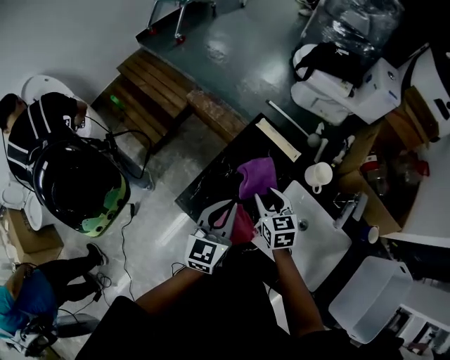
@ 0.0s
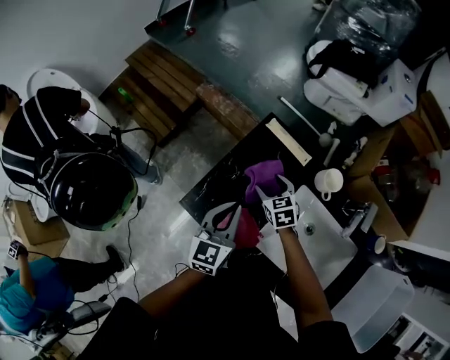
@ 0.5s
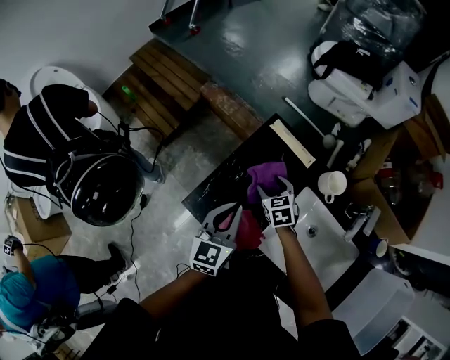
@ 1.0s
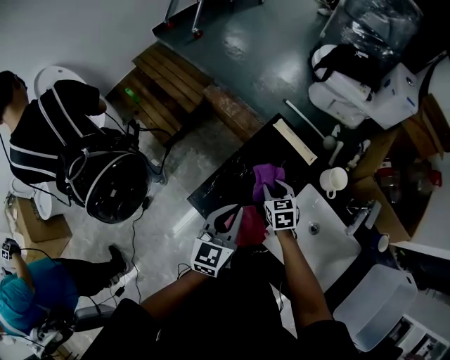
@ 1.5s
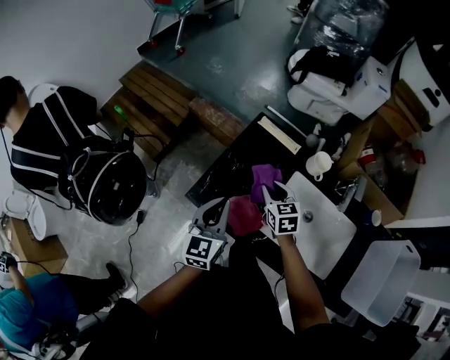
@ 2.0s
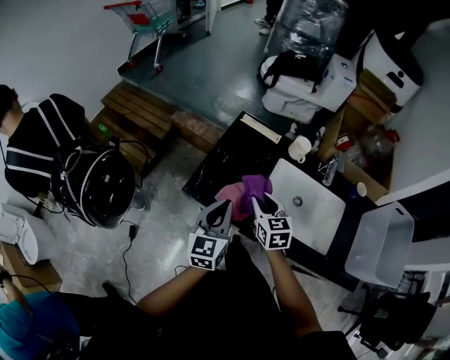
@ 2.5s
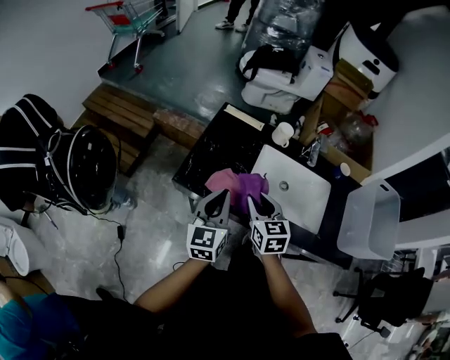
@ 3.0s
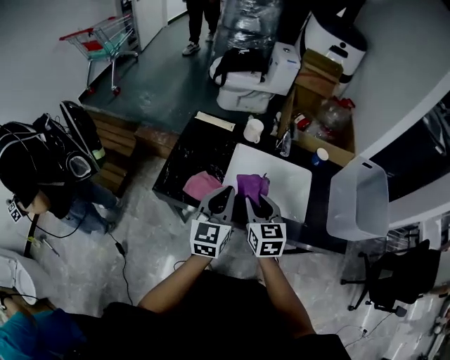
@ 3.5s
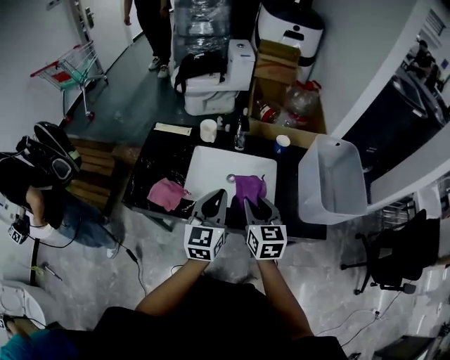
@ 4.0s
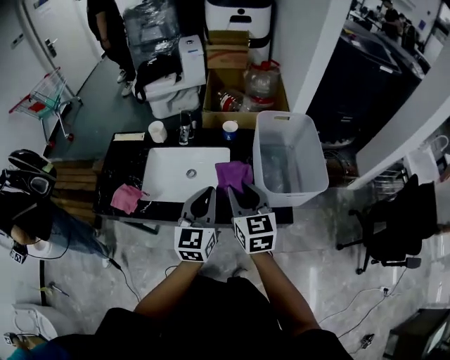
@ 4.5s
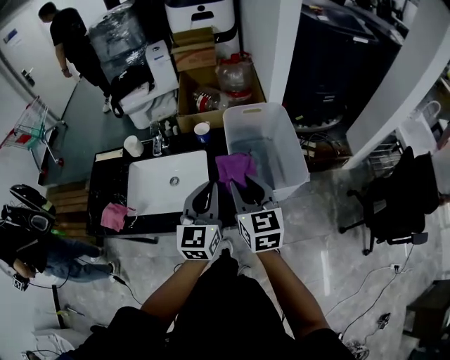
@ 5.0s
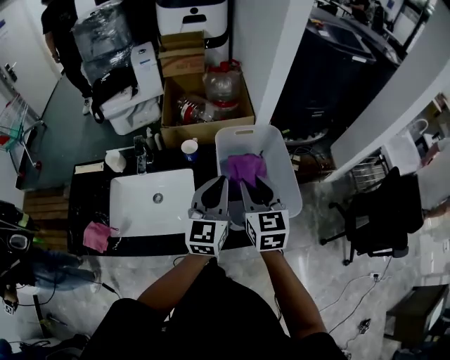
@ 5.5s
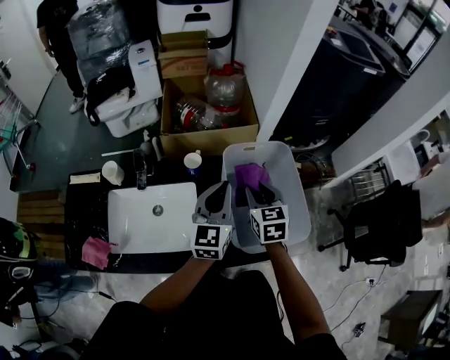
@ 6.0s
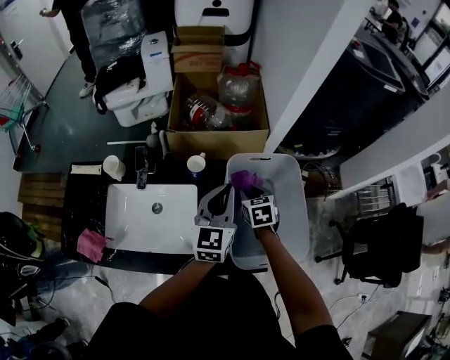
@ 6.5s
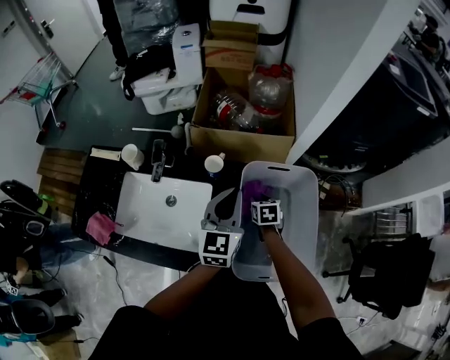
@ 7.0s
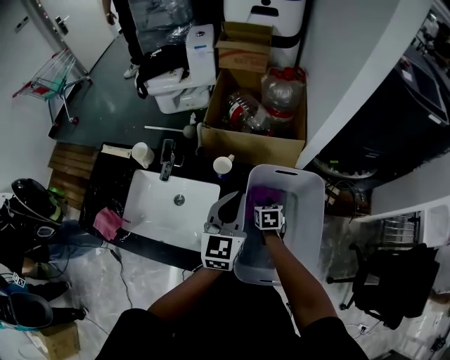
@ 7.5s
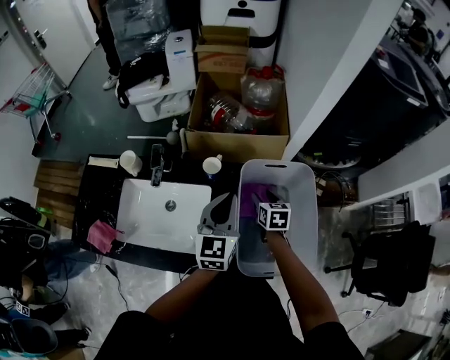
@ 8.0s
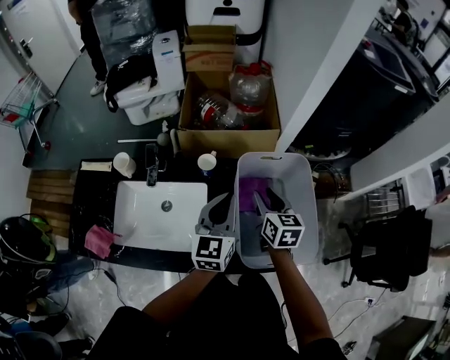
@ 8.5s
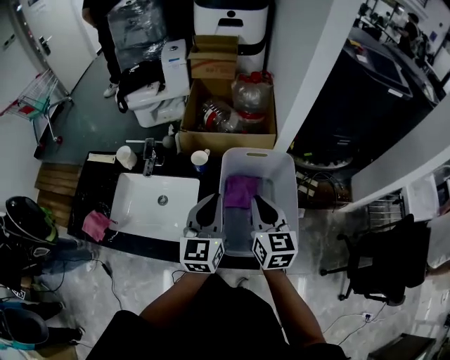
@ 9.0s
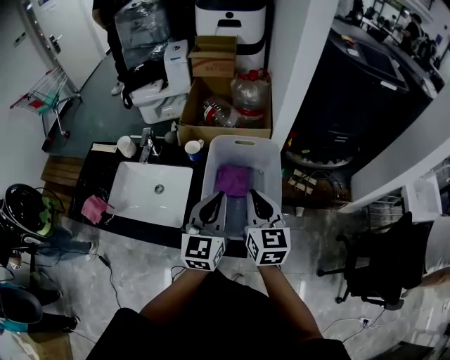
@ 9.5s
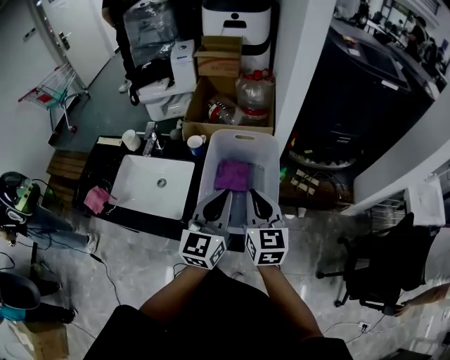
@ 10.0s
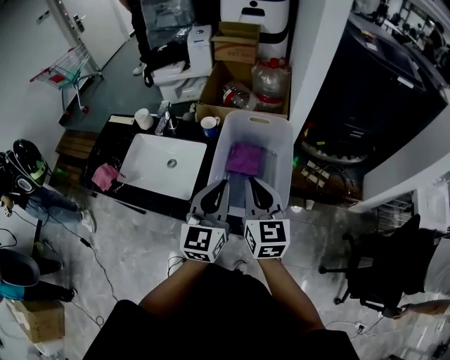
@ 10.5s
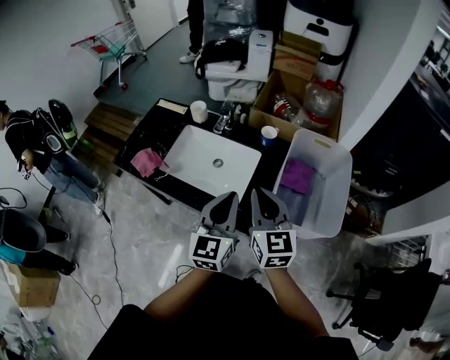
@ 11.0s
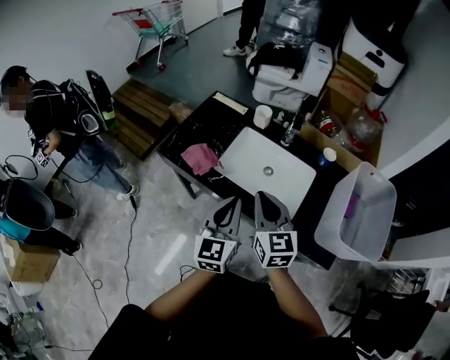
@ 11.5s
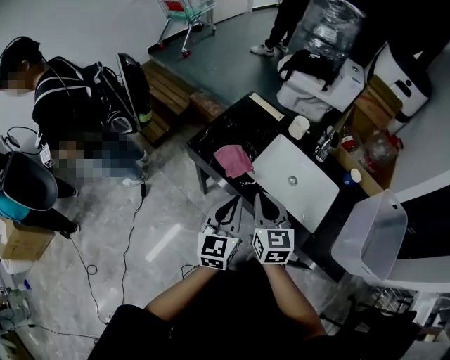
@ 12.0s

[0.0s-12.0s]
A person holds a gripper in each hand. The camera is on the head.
0.0s to 2.0s: The left gripper shifts by roughly 5 cm. Meanwhile the right gripper travels downward and back again, some 10 cm each way, and opens and closes again.
2.0s to 4.0s: The left gripper ends up about 35 cm from where it was, and swivels approximately 30 degrees, while the right gripper shifts by approximately 40 cm, and swivels some 40 degrees.
4.0s to 6.0s: The grippers both shift to the right and forward by approximately 40 cm.
6.0s to 8.0s: The right gripper travels downward and forward by approximately 15 cm.
8.0s to 10.0s: The right gripper goes about 30 cm upward and backward, points its fingers roughly 30 degrees further upward, and closes. The left gripper shifts approximately 20 cm backward and to the right.
10.0s to 12.0s: The pair of grippers is taken approximately 60 cm. The left gripper rotates about 40 degrees; the right gripper changes its angle by some 30 degrees.

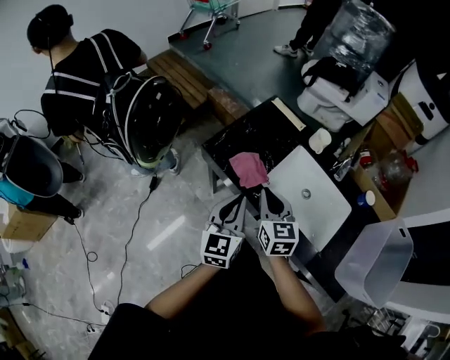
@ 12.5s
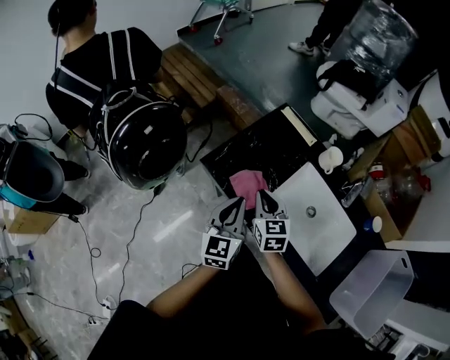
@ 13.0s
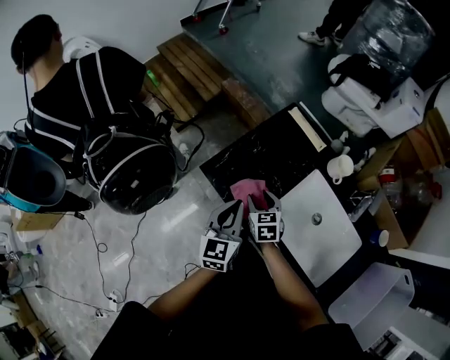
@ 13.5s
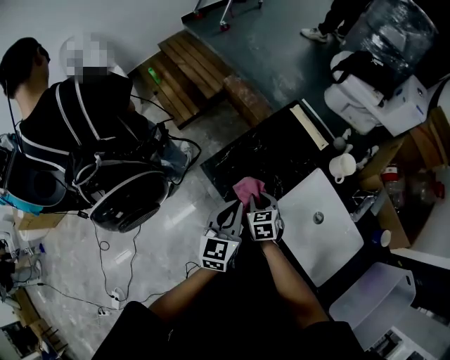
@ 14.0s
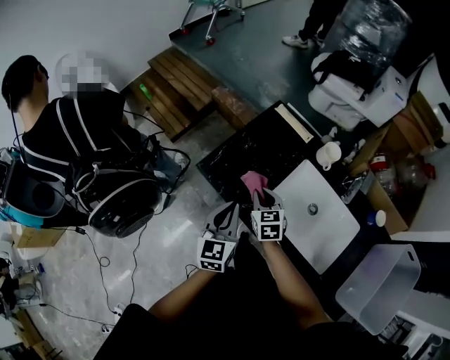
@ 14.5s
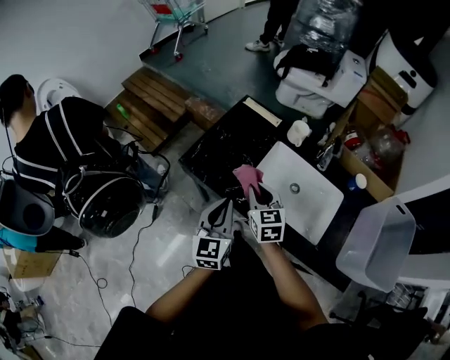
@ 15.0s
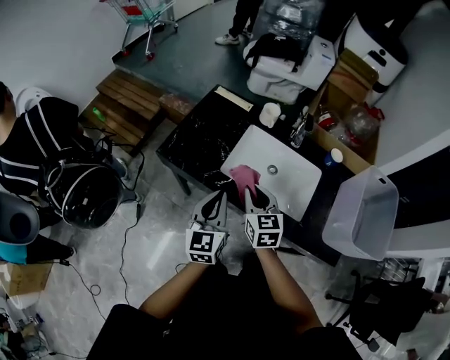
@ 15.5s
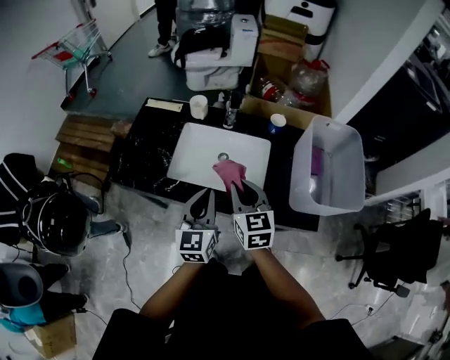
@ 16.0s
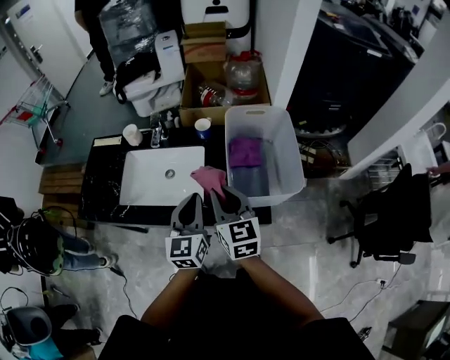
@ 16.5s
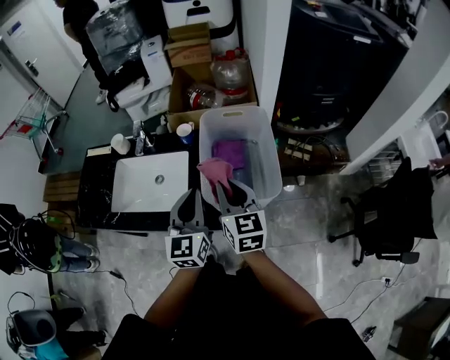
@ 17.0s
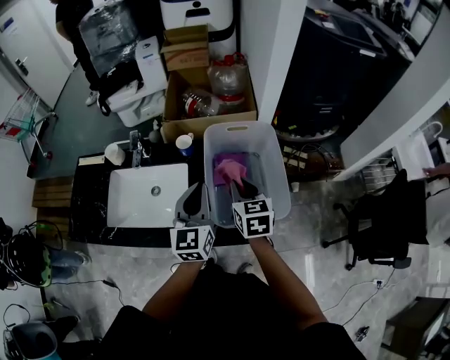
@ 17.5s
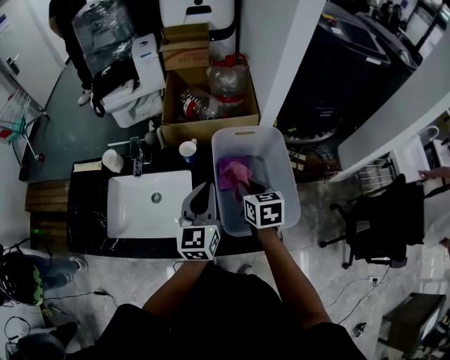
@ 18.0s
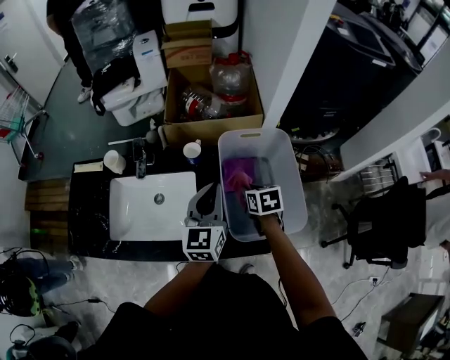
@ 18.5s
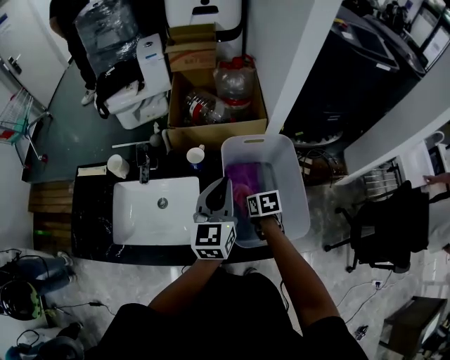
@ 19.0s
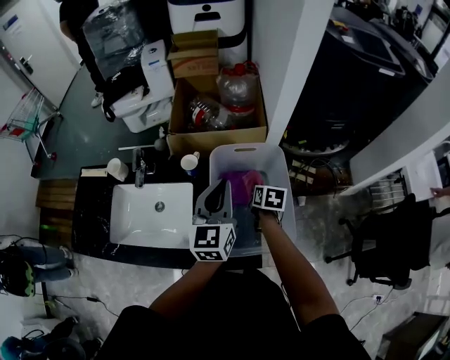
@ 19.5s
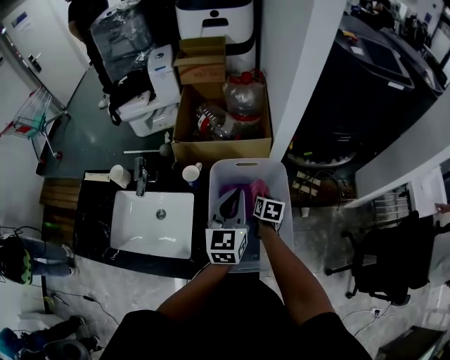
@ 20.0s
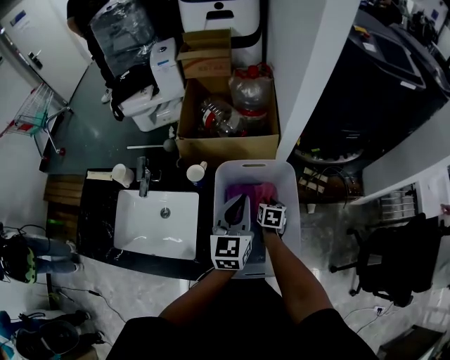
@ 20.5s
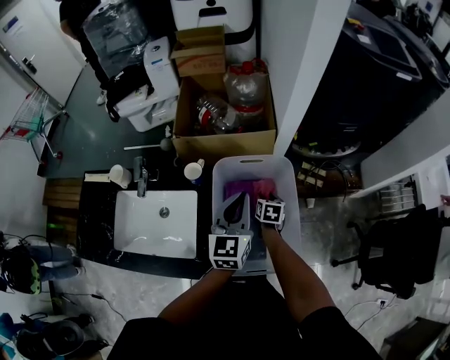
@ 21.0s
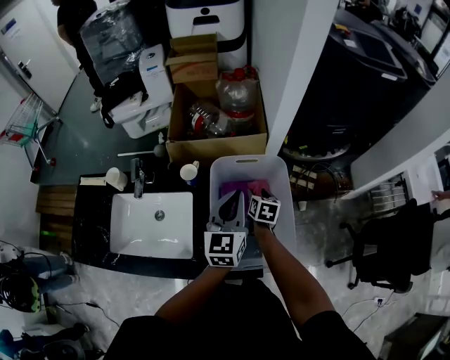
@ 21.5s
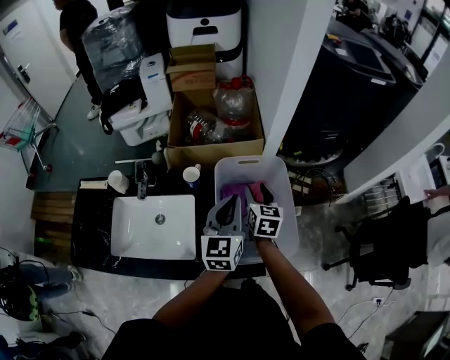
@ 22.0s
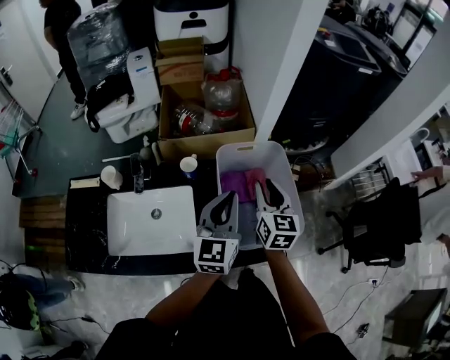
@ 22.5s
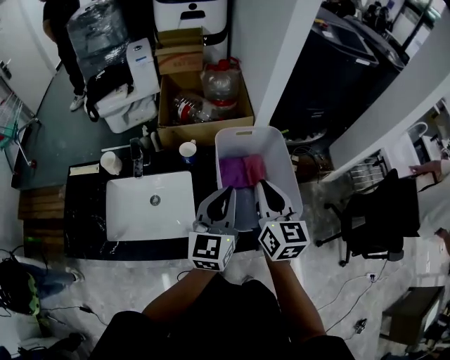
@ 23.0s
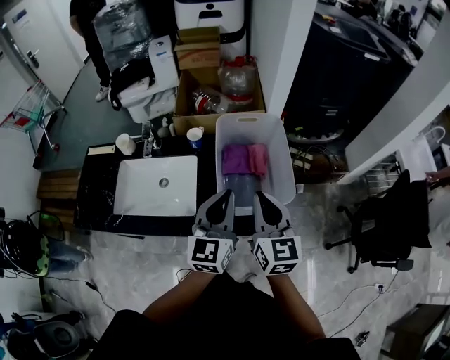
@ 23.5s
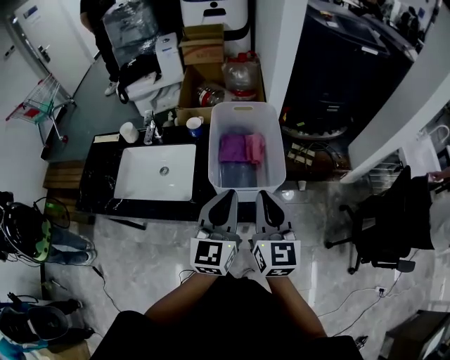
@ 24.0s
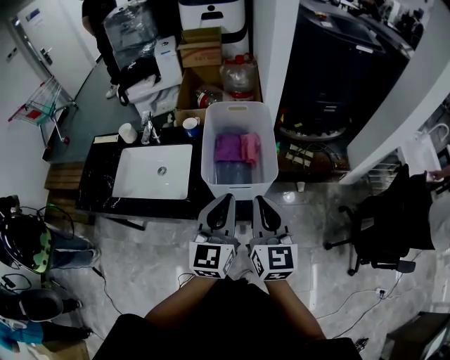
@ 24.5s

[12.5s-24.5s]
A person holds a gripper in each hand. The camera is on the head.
12.5s to 14.5s: The left gripper is displaced forward and downward by some 10 cm; the right gripper moves downward and forward, approximately 20 cm, and opens and closes again.
14.5s to 16.5s: The pair of grippers is taken roughly 50 cm. The left gripper swivels about 40 degrees. Meanwhile the right gripper changes its angle by approximately 40 degrees.
16.5s to 18.5s: The right gripper travels forward, downward and to the right by some 25 cm, and tips its fingers downward by approximately 40 degrees. The left gripper goes about 20 cm forward and to the right.
18.5s to 20.5s: The right gripper travels downward, to the right and forward by some 20 cm, while the left gripper goes roughly 15 cm to the right and forward.
20.5s to 22.5s: The right gripper travels upward and backward by approximately 30 cm, and tips its fingers upward by some 40 degrees; the left gripper travels backward, upward and to the left by some 15 cm.
22.5s to 24.5s: The left gripper is displaced backward and to the right by approximately 25 cm. The right gripper heads backward, covering some 25 cm, and closes.

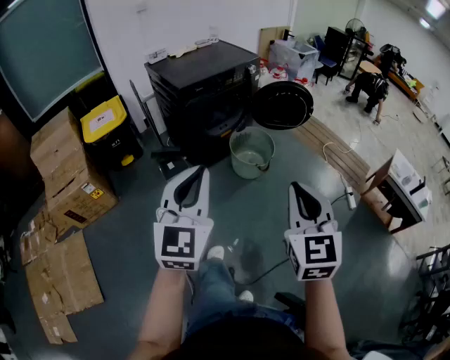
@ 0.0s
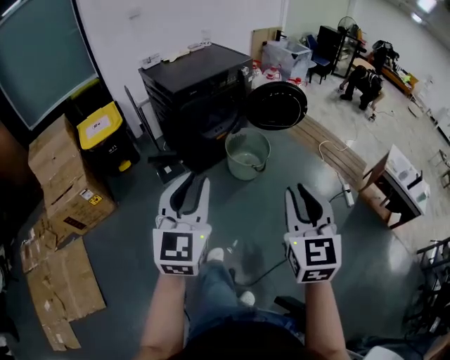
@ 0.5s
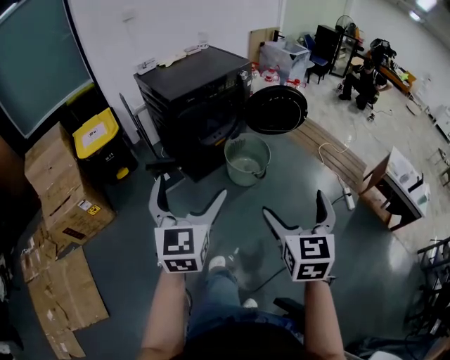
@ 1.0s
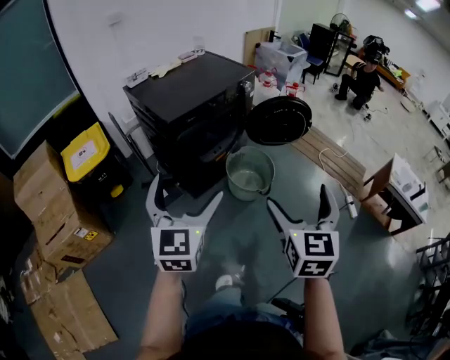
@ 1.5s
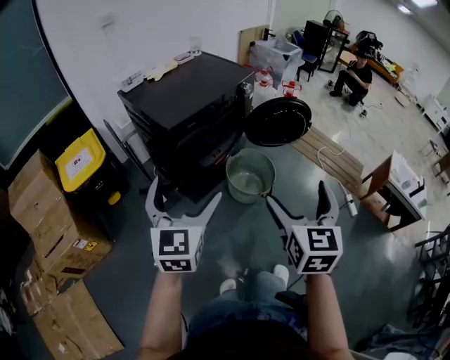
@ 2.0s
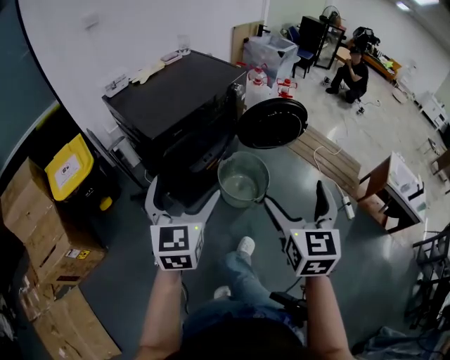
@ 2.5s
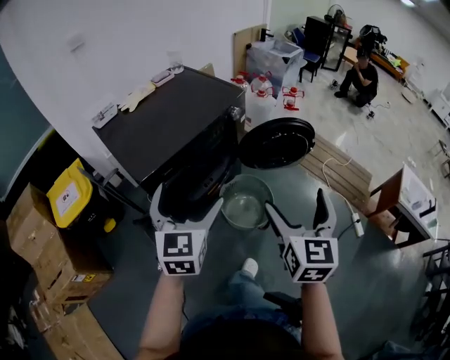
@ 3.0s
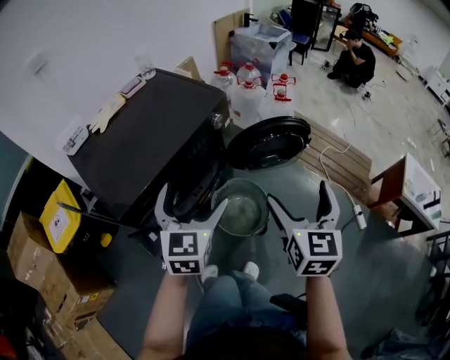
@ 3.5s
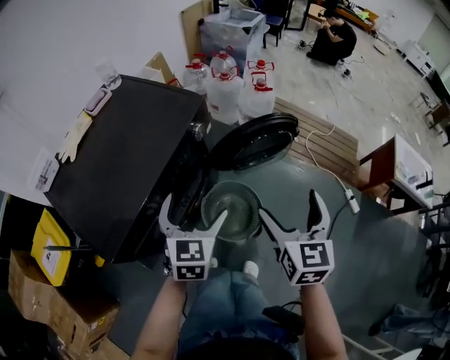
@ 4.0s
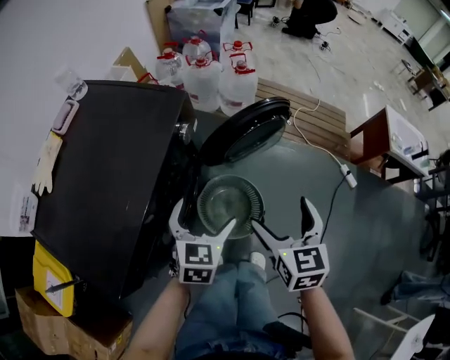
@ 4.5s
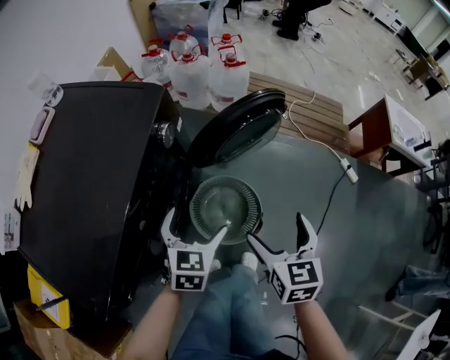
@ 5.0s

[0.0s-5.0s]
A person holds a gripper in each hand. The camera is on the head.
0.0s to 2.5s: The grippers both shift forward by roughly 35 cm. The right gripper opens up, while the left gripper opens up.
2.5s to 5.0s: The two grippers go approximately 50 cm forward and downward. The left gripper points its fingers roughly 30 degrees further downward. The right gripper turns by about 30 degrees.
